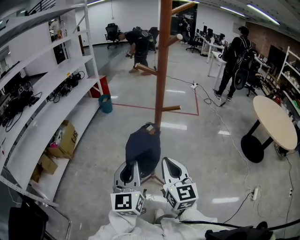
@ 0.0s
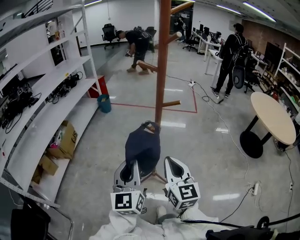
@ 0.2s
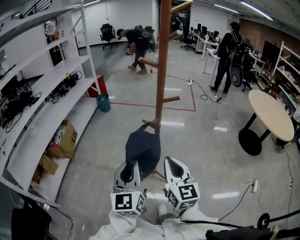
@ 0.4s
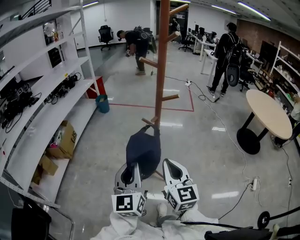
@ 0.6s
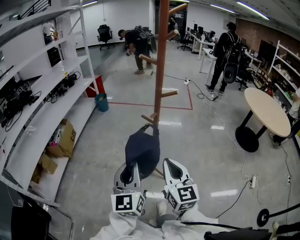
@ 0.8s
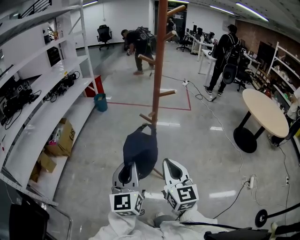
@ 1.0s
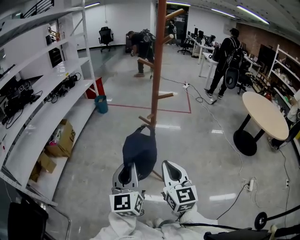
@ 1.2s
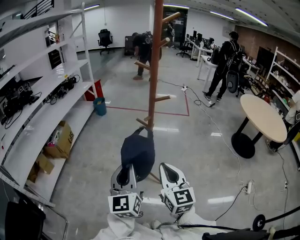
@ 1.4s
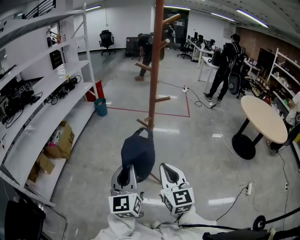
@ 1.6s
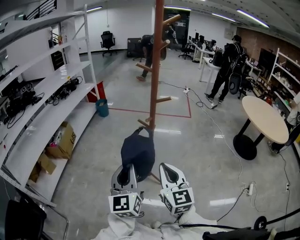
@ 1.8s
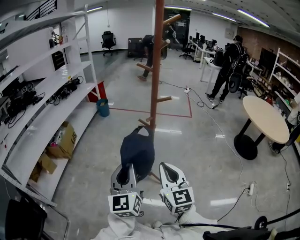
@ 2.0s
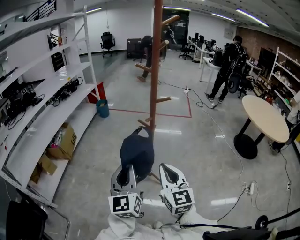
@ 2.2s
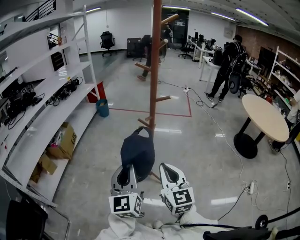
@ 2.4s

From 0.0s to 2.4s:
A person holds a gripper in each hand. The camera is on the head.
From 0.0s to 1.2s: The two grippers go roughly 10 cm backward.
From 1.2s to 2.4s: The two grippers keep their place.

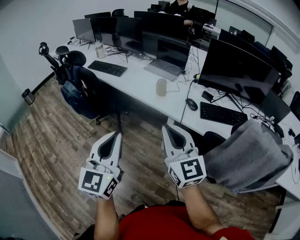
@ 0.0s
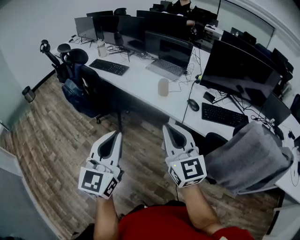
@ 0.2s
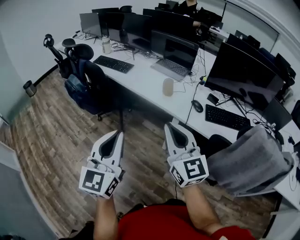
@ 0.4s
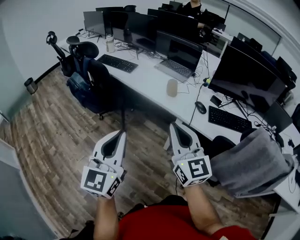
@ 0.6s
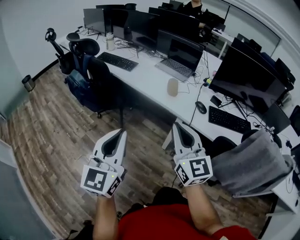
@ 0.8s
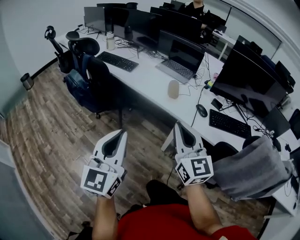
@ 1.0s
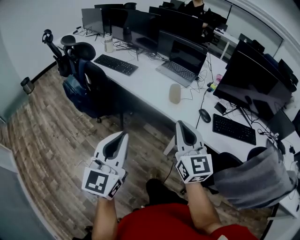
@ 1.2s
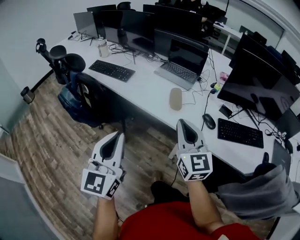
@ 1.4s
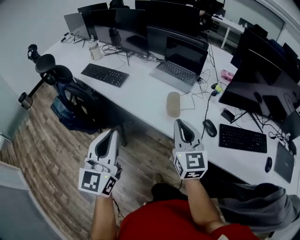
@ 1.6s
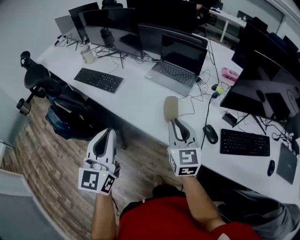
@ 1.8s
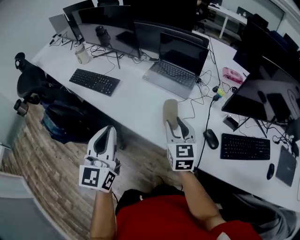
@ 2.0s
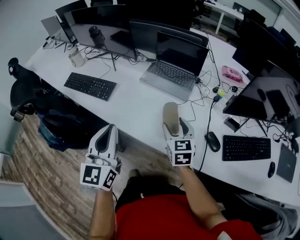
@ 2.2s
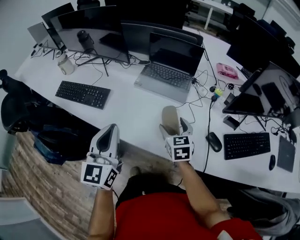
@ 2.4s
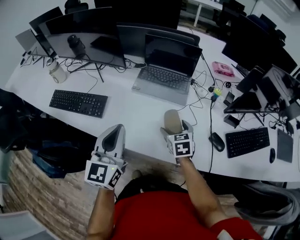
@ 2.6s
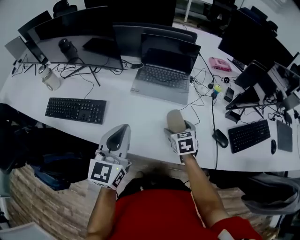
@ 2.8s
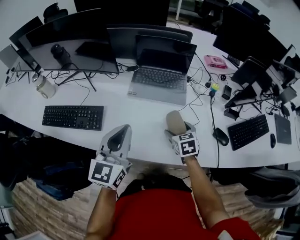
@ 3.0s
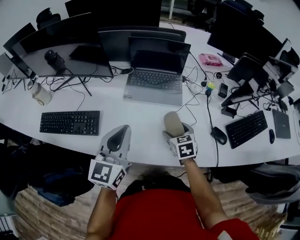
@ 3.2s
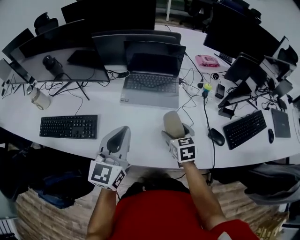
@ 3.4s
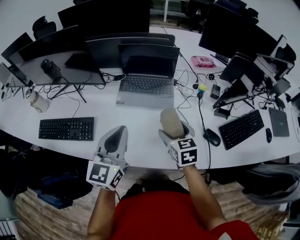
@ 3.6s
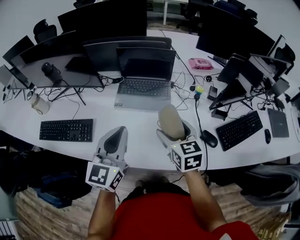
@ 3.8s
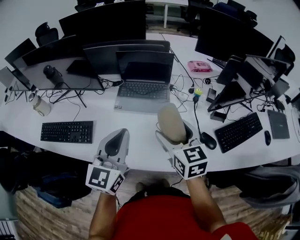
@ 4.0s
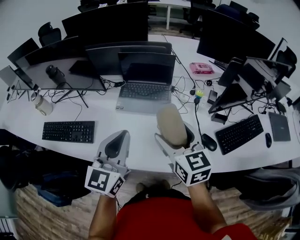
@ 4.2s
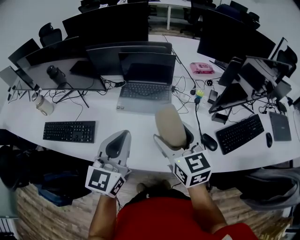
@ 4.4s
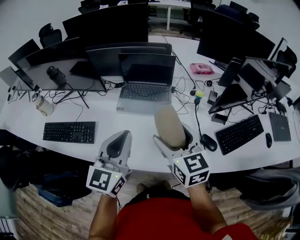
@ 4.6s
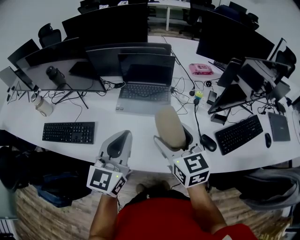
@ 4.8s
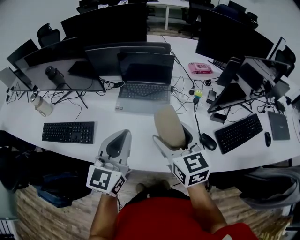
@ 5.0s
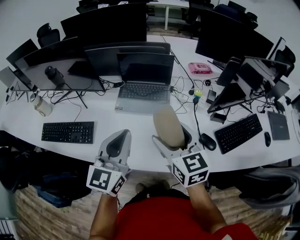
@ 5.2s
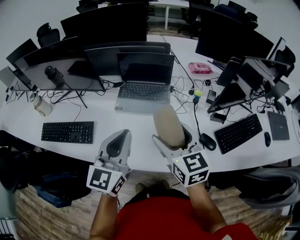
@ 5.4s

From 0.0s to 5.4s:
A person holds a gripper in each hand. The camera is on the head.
From 0.0s to 1.4s: The grippers both shift forward by about 20 cm.
From 1.4s to 2.8s: The right gripper heads forward and downward, covering roughly 40 cm, points its fingers approximately 50 degrees further downward, and opens up, while the left gripper is displaced forward by approximately 40 cm, and turns by about 30 degrees.
From 2.8s to 4.0s: The right gripper is displaced upward by roughly 20 cm, and changes its angle by roughly 30 degrees; the left gripper goes about 5 cm to the right.
From 4.0s to 5.4s: The grippers stay close to where they were, moving slightly.

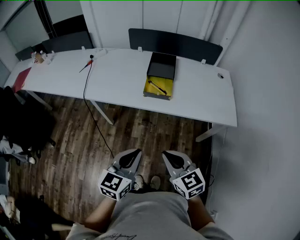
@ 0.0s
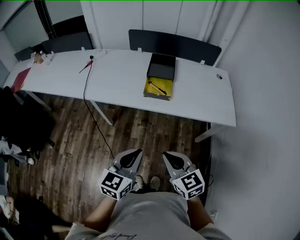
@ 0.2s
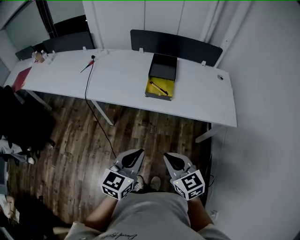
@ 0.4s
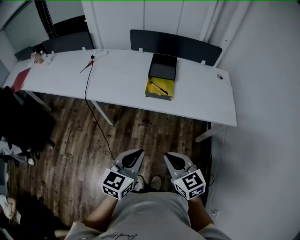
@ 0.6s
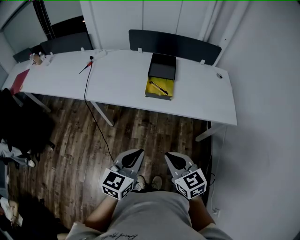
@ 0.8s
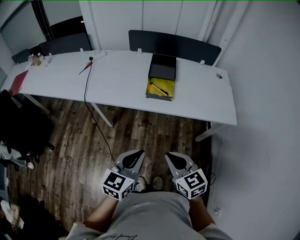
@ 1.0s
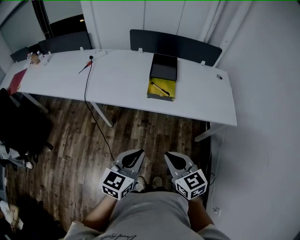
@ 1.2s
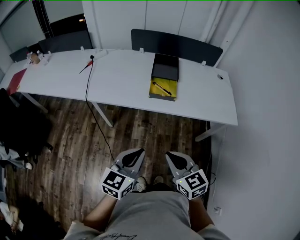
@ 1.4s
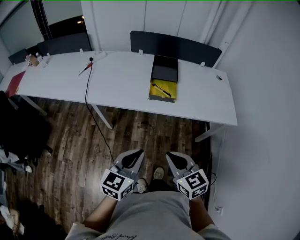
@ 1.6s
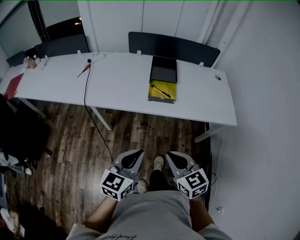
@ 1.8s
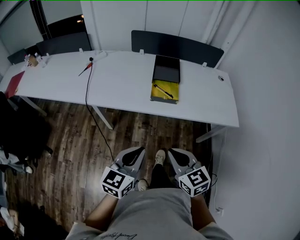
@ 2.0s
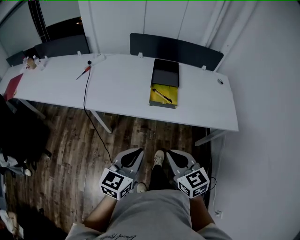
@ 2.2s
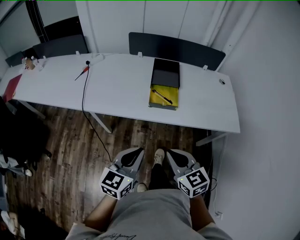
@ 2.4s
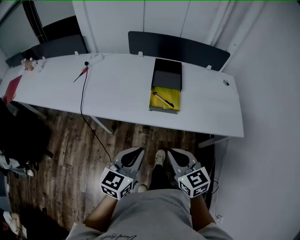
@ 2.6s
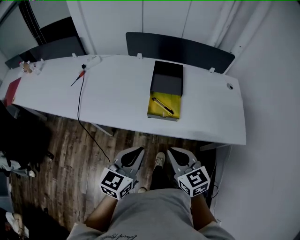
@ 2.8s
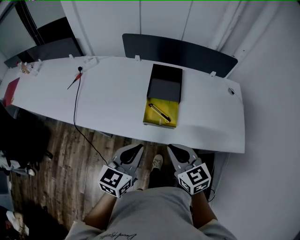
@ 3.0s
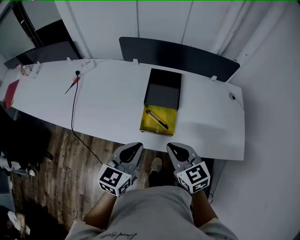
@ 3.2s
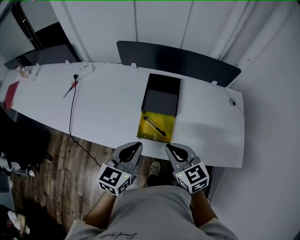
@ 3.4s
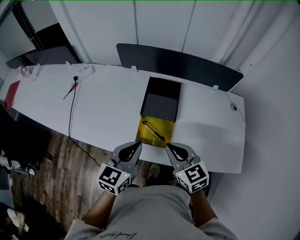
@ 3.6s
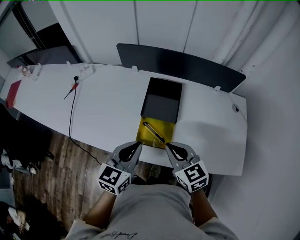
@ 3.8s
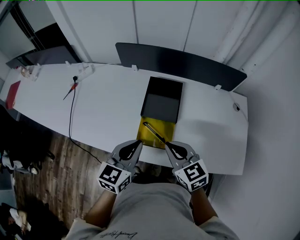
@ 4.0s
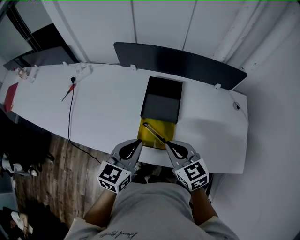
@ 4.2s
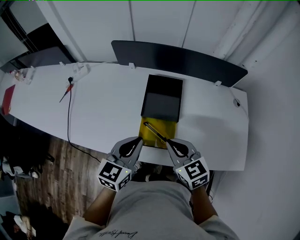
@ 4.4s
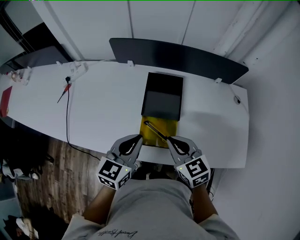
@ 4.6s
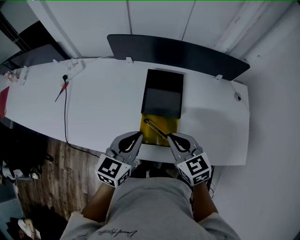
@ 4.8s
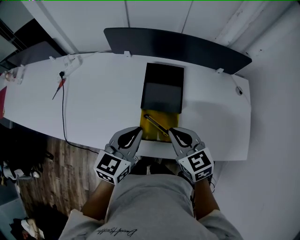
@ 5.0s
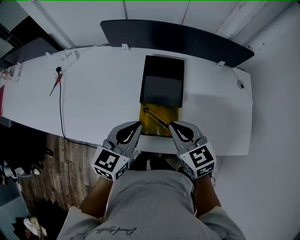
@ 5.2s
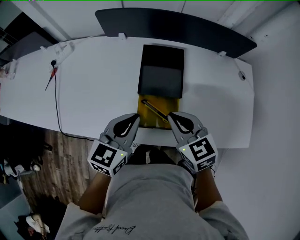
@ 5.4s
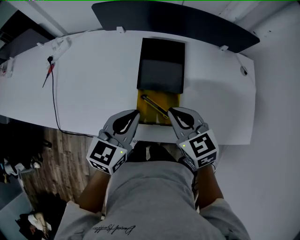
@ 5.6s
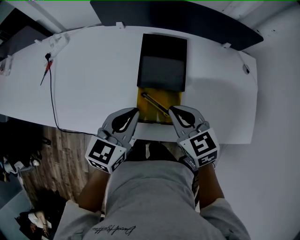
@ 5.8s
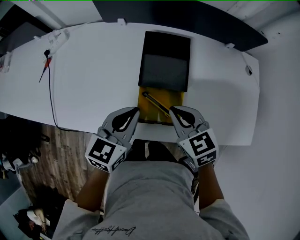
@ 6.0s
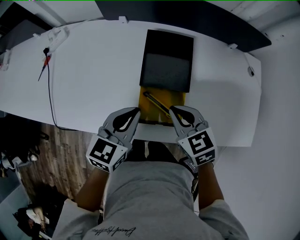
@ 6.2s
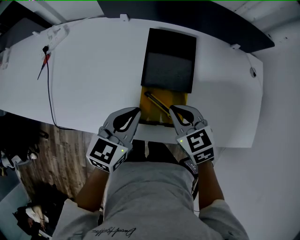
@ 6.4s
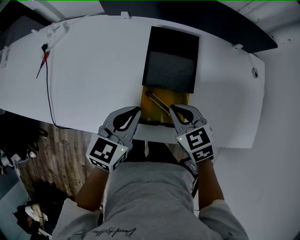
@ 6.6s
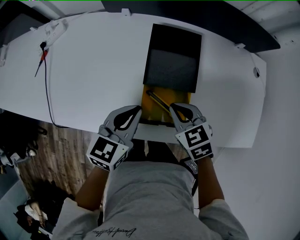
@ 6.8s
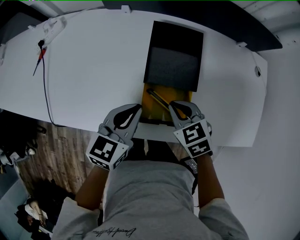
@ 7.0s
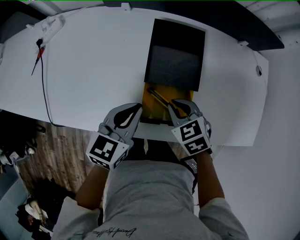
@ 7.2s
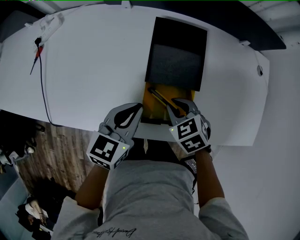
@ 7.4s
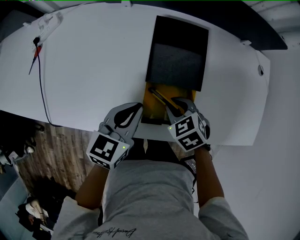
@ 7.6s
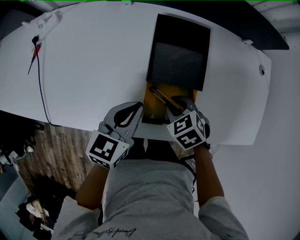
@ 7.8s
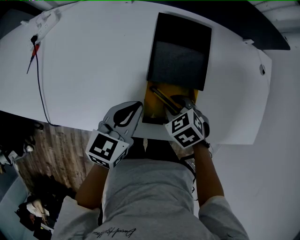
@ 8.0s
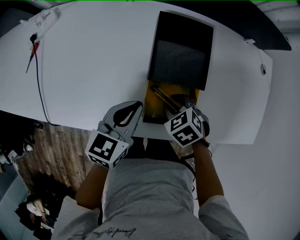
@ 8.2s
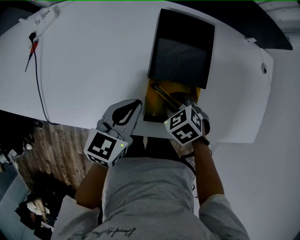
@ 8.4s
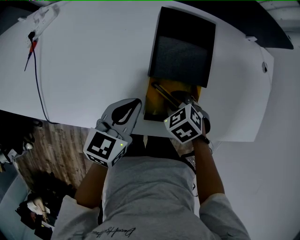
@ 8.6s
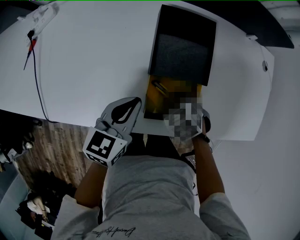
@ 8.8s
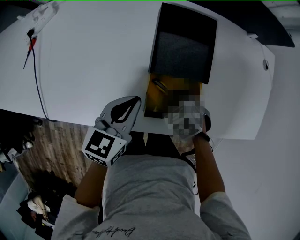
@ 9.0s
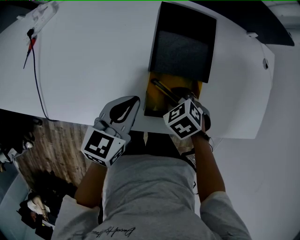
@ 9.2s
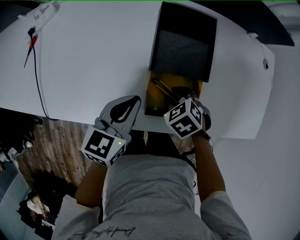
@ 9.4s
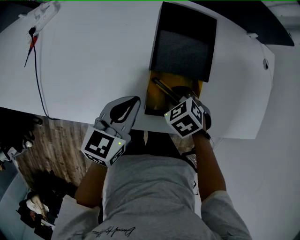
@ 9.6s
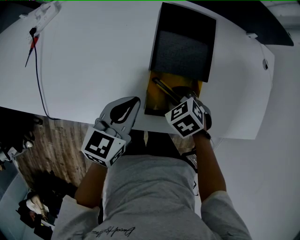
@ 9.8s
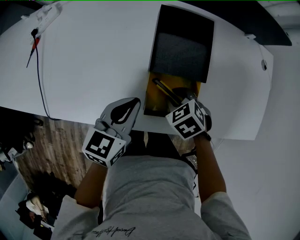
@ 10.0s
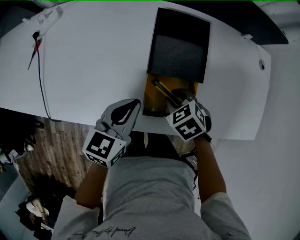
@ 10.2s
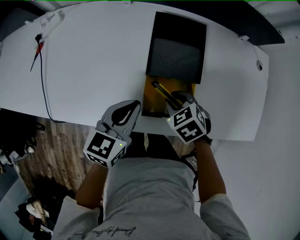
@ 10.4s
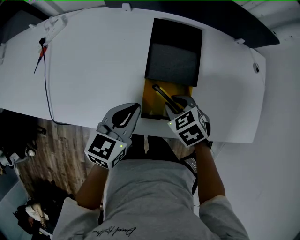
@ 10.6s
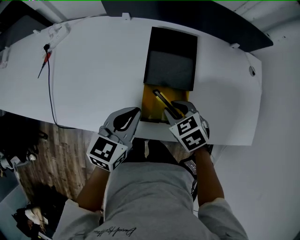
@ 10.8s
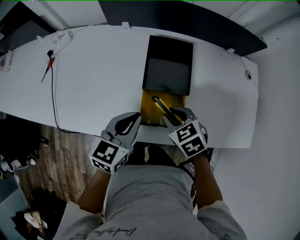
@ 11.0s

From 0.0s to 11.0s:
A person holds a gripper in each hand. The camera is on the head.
From 0.0s to 1.6s: The grippers both shift to the left by roughly 5 cm.
From 1.6s to 3.2s: The grippers both shift forward by roughly 30 cm.
From 3.2s to 4.8s: The two grippers go about 15 cm forward.
From 4.8s to 6.2s: Both grippers travel together downward, about 5 cm.
From 6.2s to 7.8s: The left gripper moves downward, some 5 cm. Meanwhile the right gripper is displaced downward by some 15 cm, turns by about 30 degrees, and opens up.
From 7.8s to 9.4s: The grippers make only small movements.
From 9.4s to 11.0s: The right gripper goes approximately 10 cm upward. Meanwhile the left gripper shifts roughly 5 cm upward.

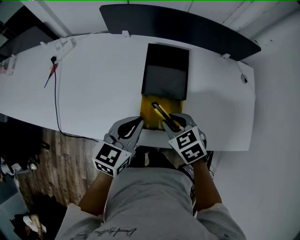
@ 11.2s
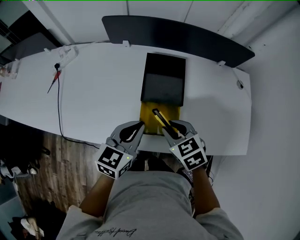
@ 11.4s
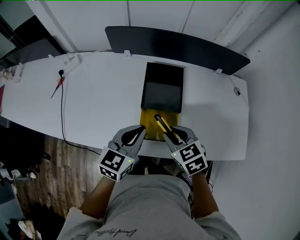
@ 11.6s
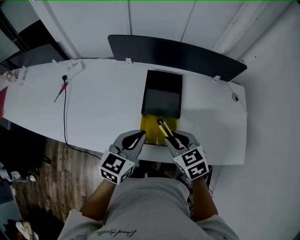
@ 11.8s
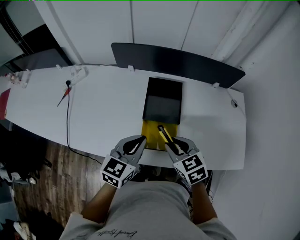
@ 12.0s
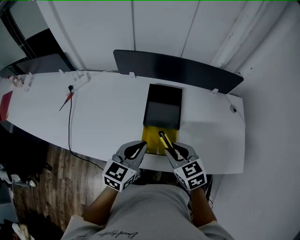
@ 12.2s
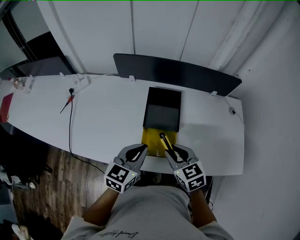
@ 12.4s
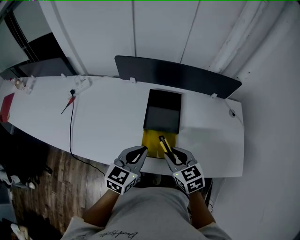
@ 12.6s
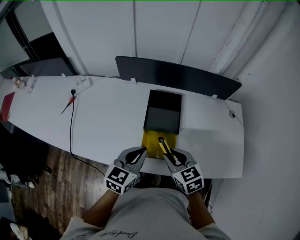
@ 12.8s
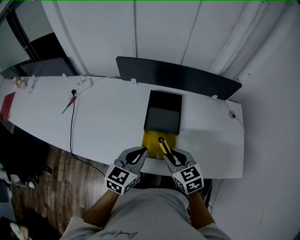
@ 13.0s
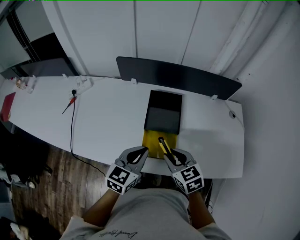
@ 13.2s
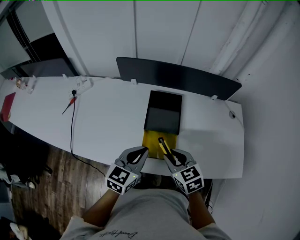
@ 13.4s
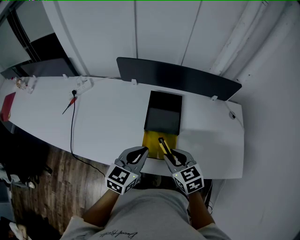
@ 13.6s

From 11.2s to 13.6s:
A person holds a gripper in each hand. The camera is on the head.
From 11.2s to 12.4s: The left gripper moves upward, about 5 cm; the right gripper moves upward, roughly 10 cm.
From 12.4s to 13.6s: Both grippers stay about where they are.

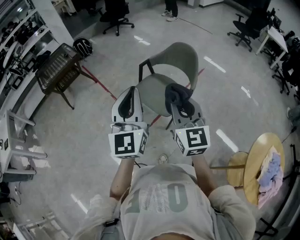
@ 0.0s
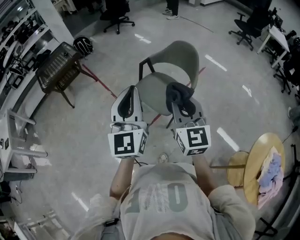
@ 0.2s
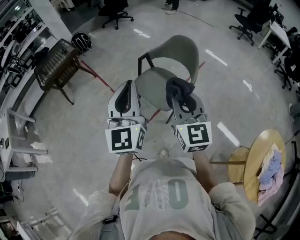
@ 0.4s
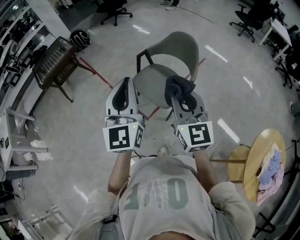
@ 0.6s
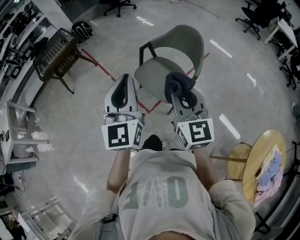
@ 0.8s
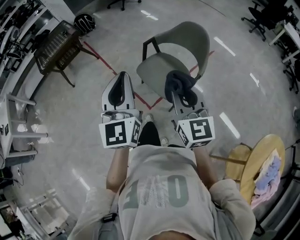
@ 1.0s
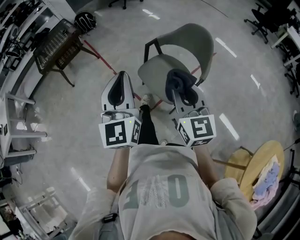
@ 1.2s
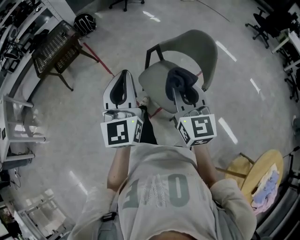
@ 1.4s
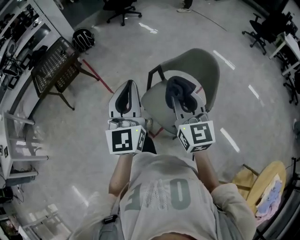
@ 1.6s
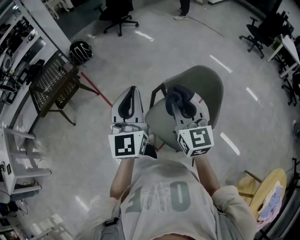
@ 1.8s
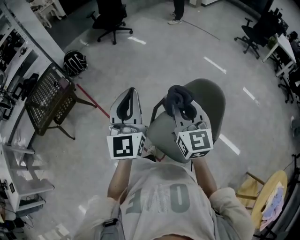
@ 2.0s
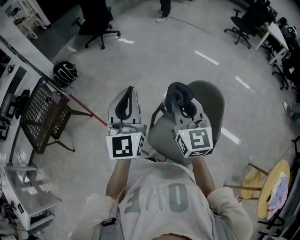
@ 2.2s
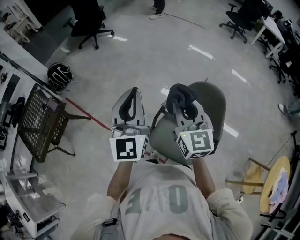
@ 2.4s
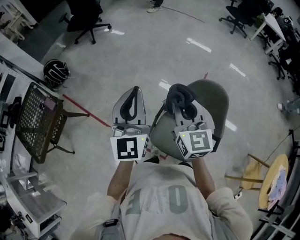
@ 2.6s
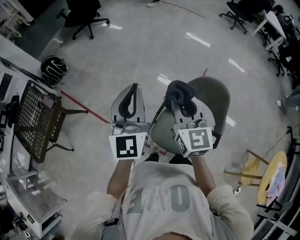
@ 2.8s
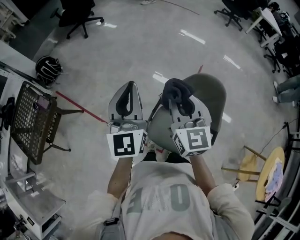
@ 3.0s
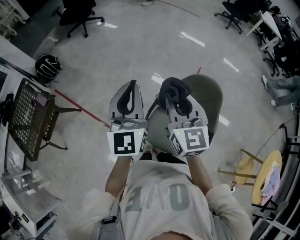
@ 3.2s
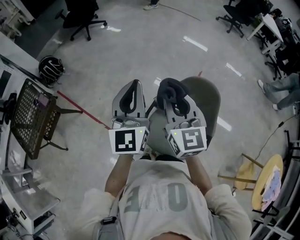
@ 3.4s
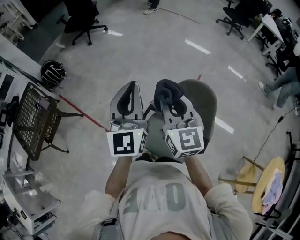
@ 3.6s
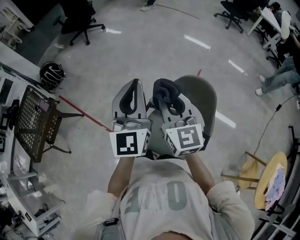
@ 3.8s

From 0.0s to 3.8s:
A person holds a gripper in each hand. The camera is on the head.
From 0.0s to 1.2s: Both grippers travel together forward and downward, about 10 cm.
From 1.2s to 2.6s: Both grippers are carried forward, about 50 cm. The right gripper swivels about 20 degrees. The left gripper turns by roughly 20 degrees.
From 2.6s to 3.8s: The right gripper heads to the right, covering approximately 5 cm; the left gripper is displaced to the right by about 10 cm.
